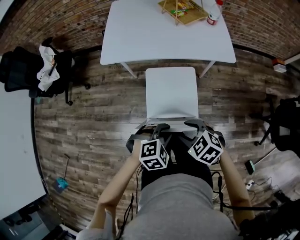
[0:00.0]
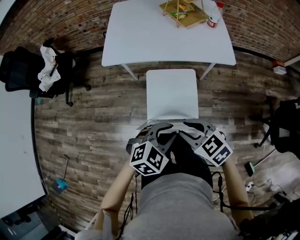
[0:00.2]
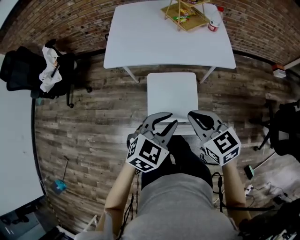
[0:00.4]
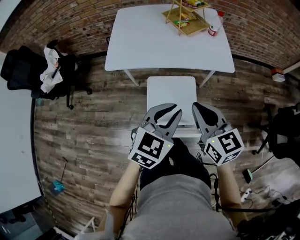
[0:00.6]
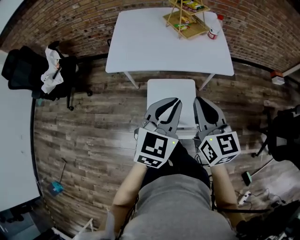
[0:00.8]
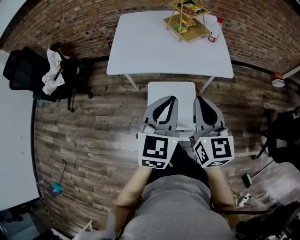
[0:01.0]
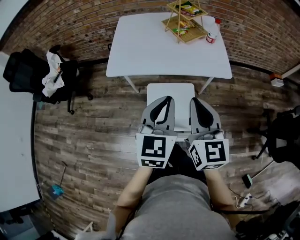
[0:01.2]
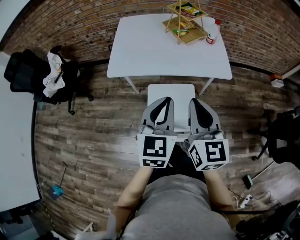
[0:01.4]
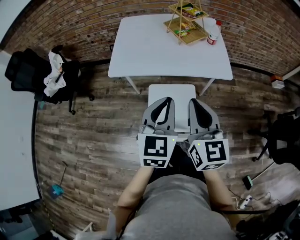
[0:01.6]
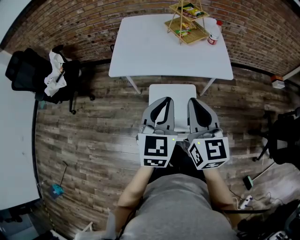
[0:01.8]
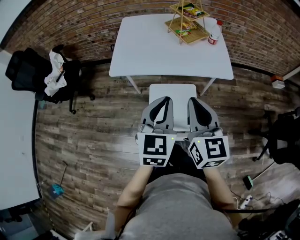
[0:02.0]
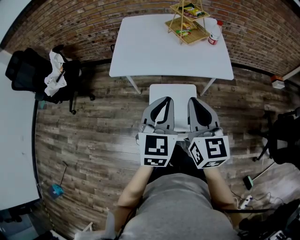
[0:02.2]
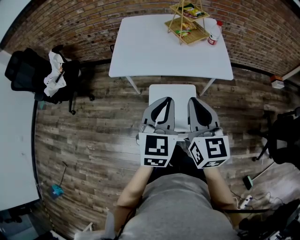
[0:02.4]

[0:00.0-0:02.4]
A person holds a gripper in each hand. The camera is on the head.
0:00.0 to 0:01.2: Both grippers move upward and forward, roughly 25 cm. The left gripper tilts its fingers some 40 degrees upward. Meanwhile the right gripper tilts its fingers about 50 degrees upward, and closes up.
0:01.2 to 0:02.4: There are only small adjustments of the grippers.

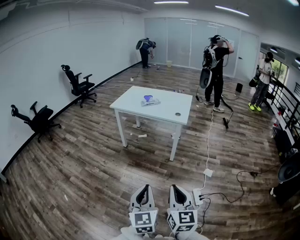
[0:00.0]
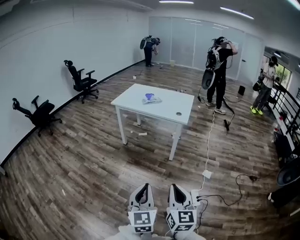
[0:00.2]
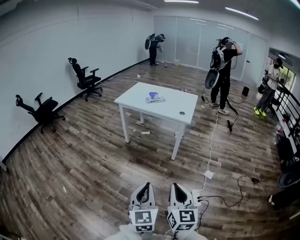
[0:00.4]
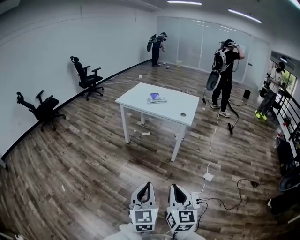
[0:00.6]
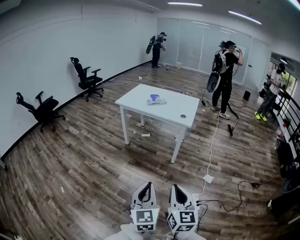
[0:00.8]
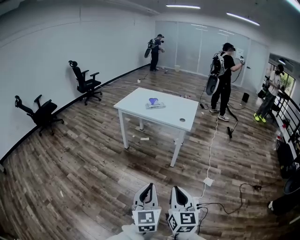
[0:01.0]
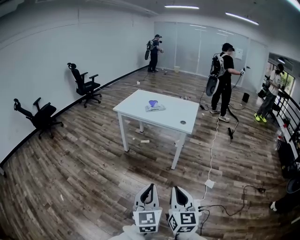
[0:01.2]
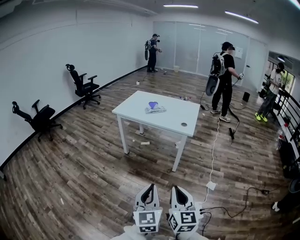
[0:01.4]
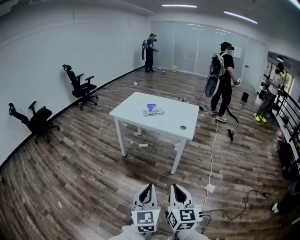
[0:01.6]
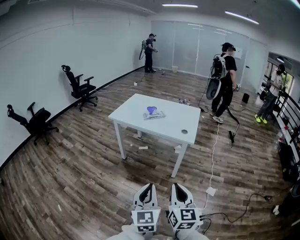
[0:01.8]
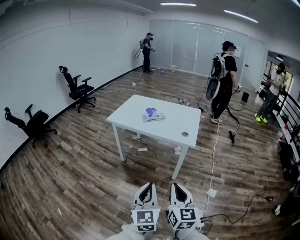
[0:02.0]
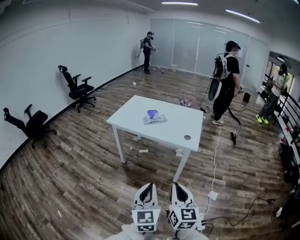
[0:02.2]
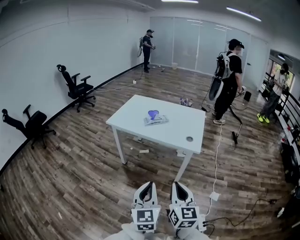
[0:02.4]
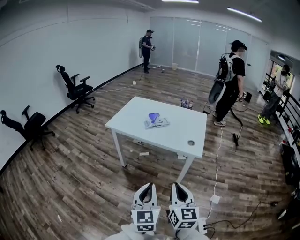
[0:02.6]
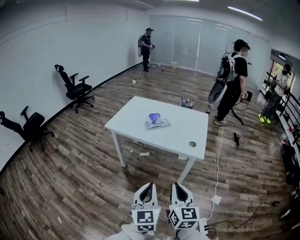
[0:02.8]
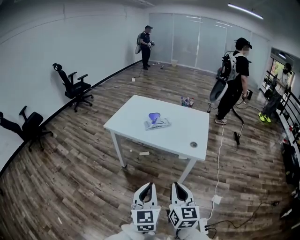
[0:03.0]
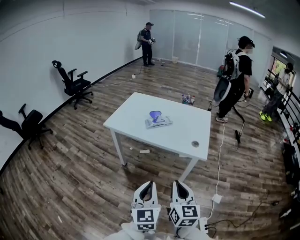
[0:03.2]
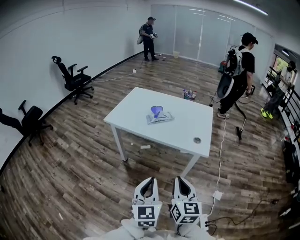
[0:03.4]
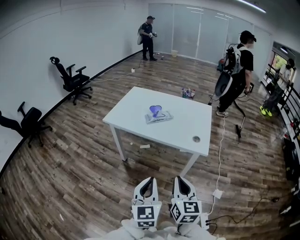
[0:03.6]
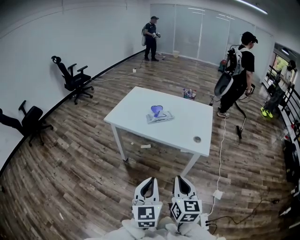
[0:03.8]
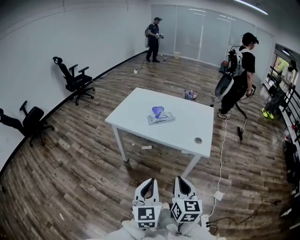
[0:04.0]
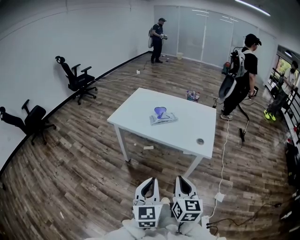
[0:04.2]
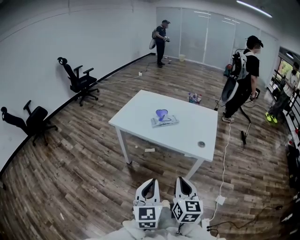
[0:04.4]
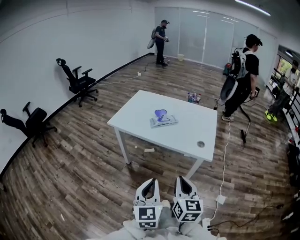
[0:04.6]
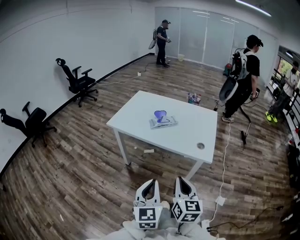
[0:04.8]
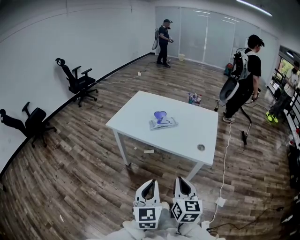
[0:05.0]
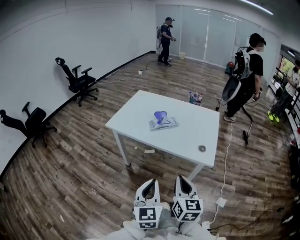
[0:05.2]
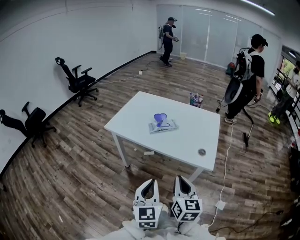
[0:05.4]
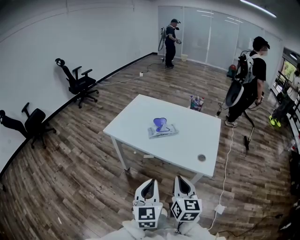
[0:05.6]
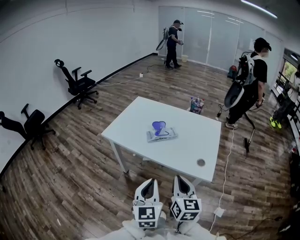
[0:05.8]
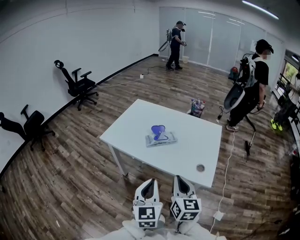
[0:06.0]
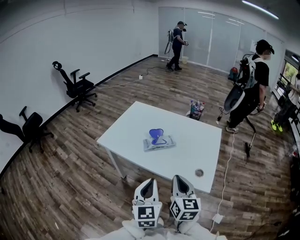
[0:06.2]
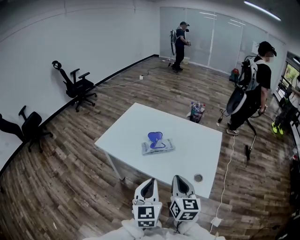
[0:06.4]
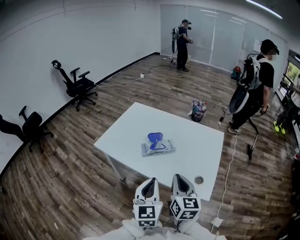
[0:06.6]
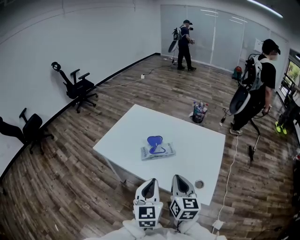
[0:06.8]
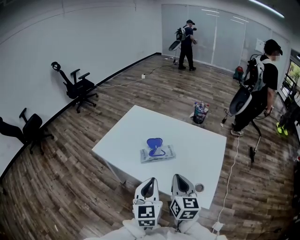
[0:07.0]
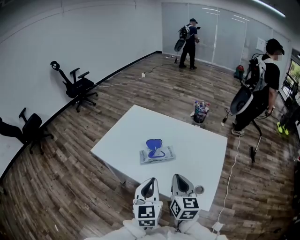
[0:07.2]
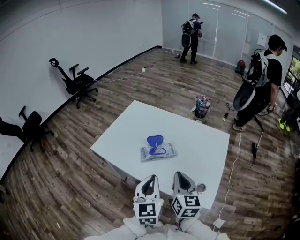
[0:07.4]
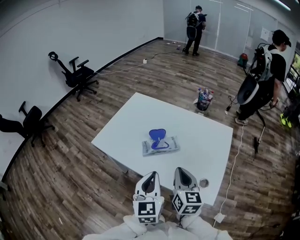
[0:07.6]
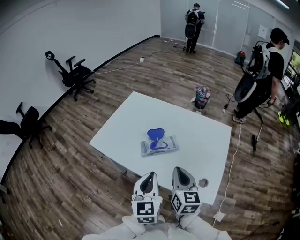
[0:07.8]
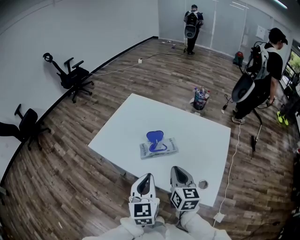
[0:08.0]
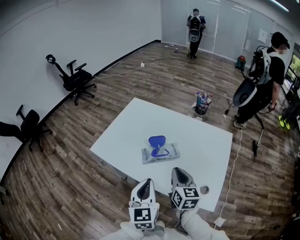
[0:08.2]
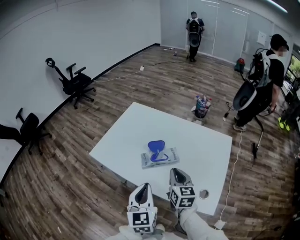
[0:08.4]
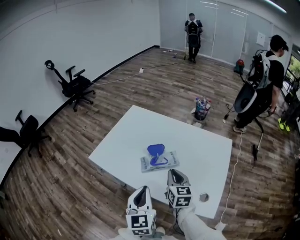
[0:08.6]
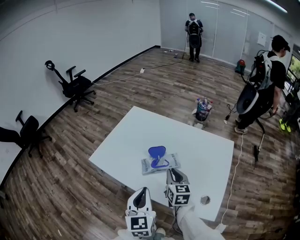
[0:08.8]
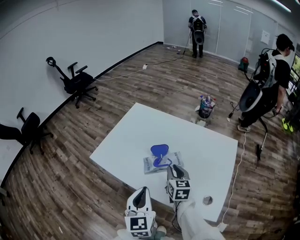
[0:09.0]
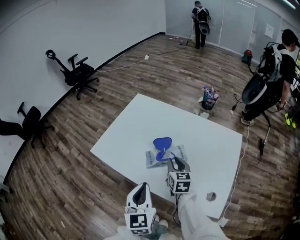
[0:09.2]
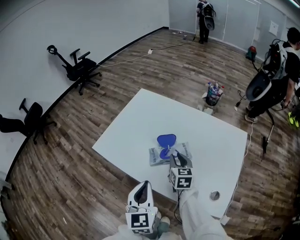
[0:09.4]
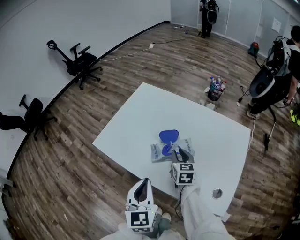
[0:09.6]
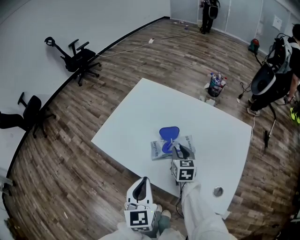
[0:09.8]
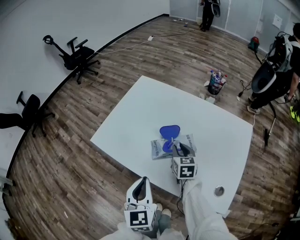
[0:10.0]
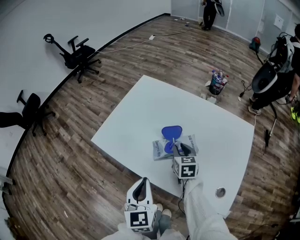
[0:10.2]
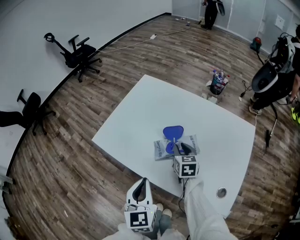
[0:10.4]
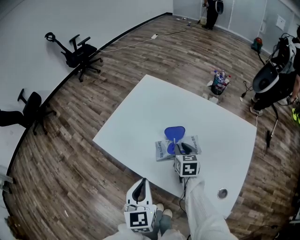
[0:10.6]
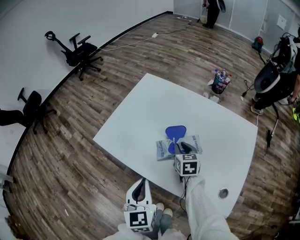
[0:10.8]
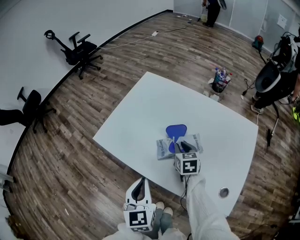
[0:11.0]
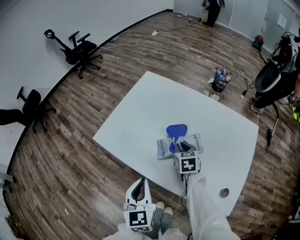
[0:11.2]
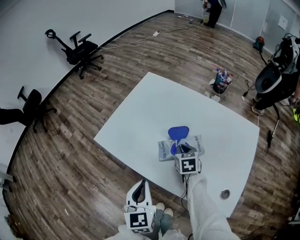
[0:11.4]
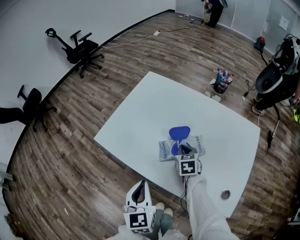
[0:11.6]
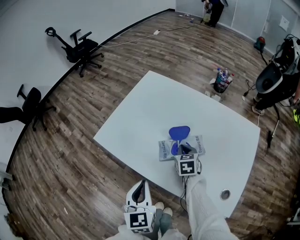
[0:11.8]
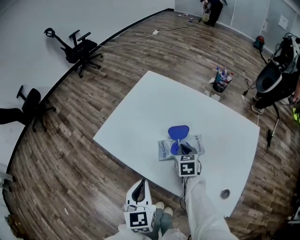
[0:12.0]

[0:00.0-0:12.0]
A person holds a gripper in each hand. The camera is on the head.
0:00.0 to 0:01.6: Both grippers move forward, approximately 15 cm.
0:01.6 to 0:03.0: The grippers both shift forward by approximately 25 cm.
0:03.0 to 0:04.4: The right gripper ends up roughly 5 cm from where it was.
0:04.4 to 0:06.0: Both grippers travel together forward, roughly 20 cm.
0:06.0 to 0:07.6: The grippers both shift forward by some 15 cm.
0:07.6 to 0:09.0: The left gripper heads to the left, covering roughly 5 cm. Meanwhile the right gripper is displaced forward and downward by roughly 15 cm.
0:09.0 to 0:10.4: The right gripper is displaced downward and forward by approximately 10 cm. The left gripper changes place by about 5 cm.
0:10.4 to 0:12.0: The right gripper closes.

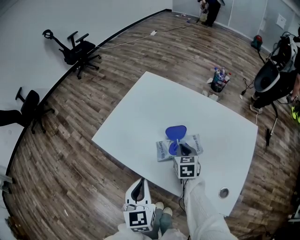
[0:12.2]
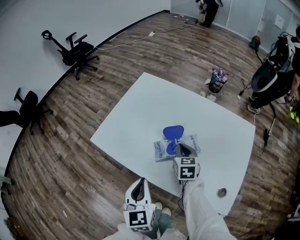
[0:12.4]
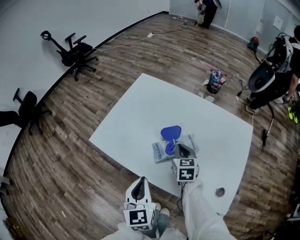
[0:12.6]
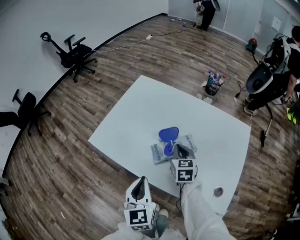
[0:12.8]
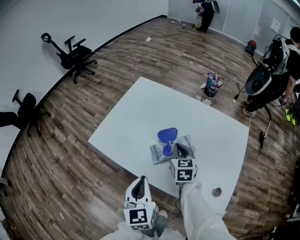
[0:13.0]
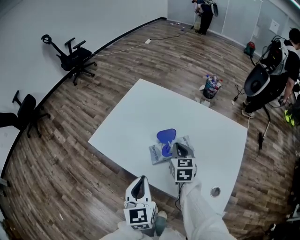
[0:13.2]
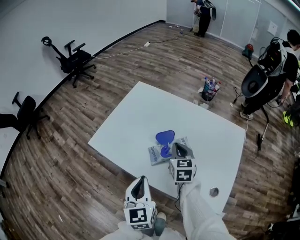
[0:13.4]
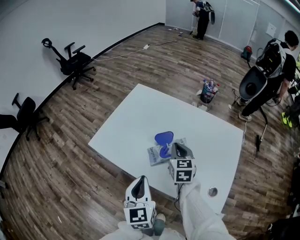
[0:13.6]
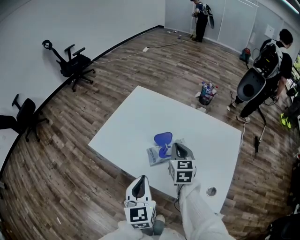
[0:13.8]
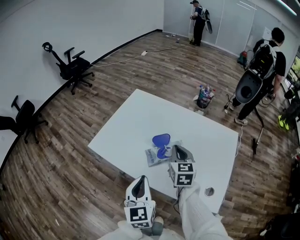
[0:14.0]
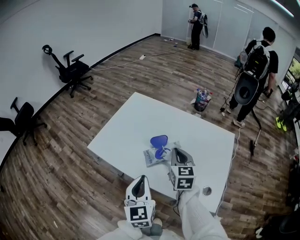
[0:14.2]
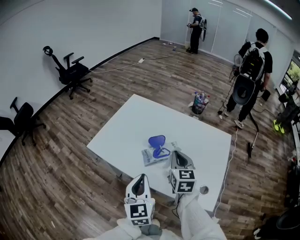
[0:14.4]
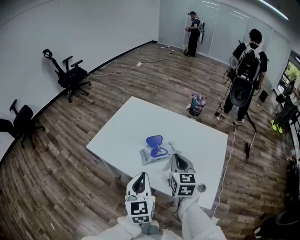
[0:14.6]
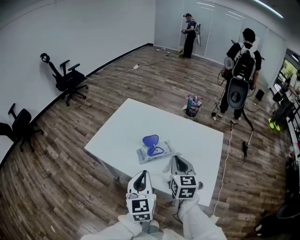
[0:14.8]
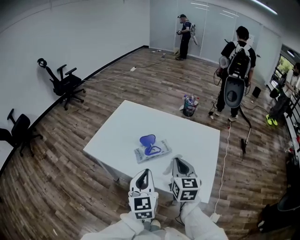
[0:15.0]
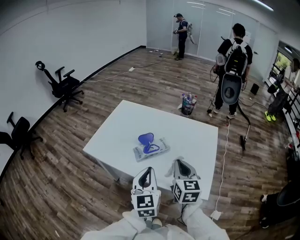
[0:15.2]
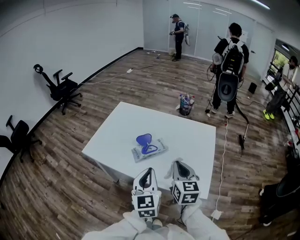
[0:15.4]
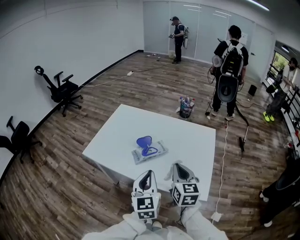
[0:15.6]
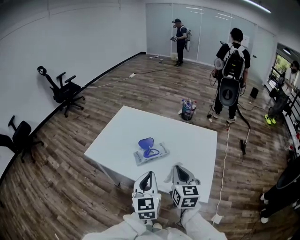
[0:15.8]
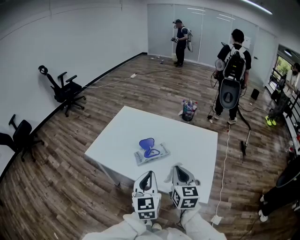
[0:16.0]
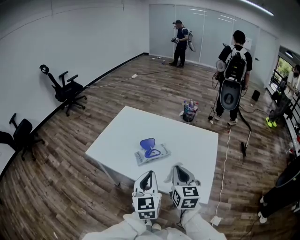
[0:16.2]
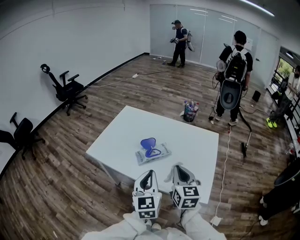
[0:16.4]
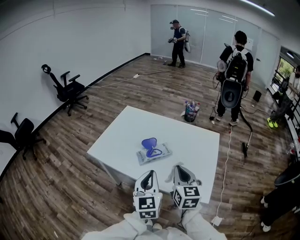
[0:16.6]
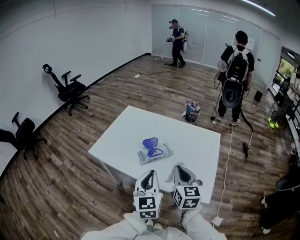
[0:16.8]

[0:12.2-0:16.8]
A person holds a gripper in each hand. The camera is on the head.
0:12.2 to 0:13.8: The right gripper is displaced upward by some 10 cm. Meanwhile the left gripper ends up approximately 5 cm from where it was.
0:13.8 to 0:15.2: The left gripper moves to the right and upward, some 10 cm, while the right gripper heads backward, to the right and upward, covering some 20 cm.
0:15.2 to 0:16.8: There are only small adjustments of the grippers.

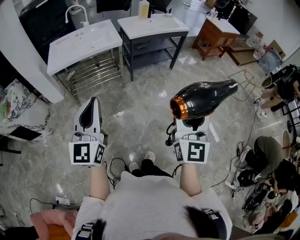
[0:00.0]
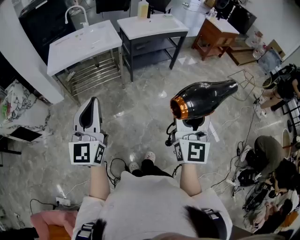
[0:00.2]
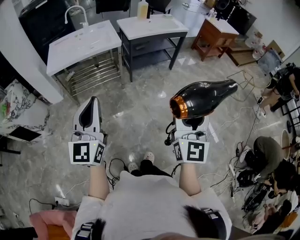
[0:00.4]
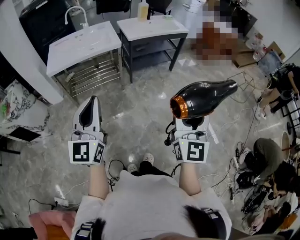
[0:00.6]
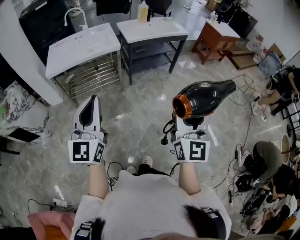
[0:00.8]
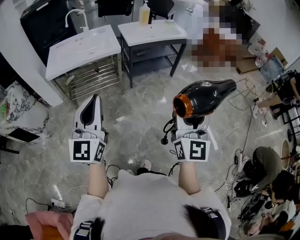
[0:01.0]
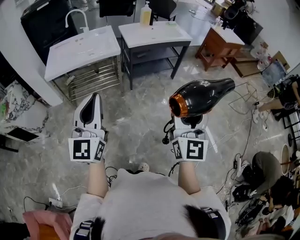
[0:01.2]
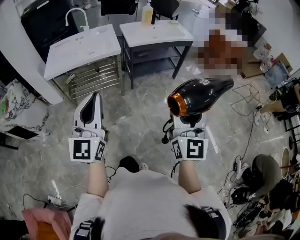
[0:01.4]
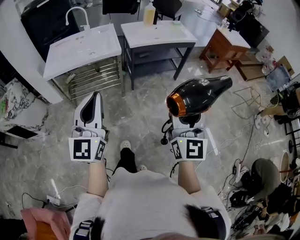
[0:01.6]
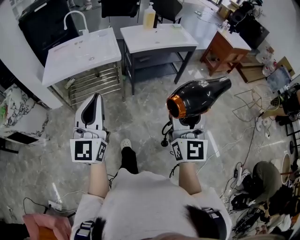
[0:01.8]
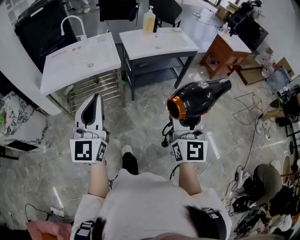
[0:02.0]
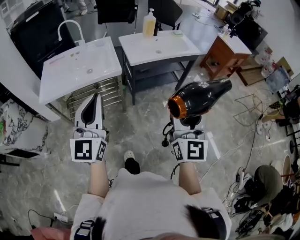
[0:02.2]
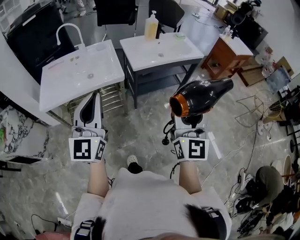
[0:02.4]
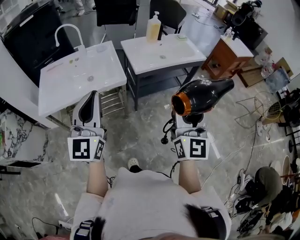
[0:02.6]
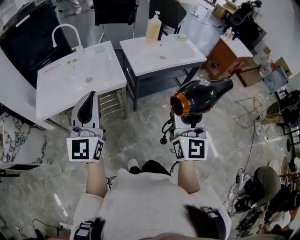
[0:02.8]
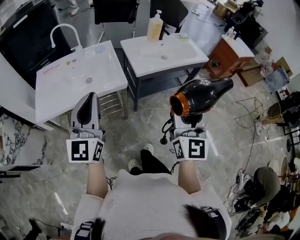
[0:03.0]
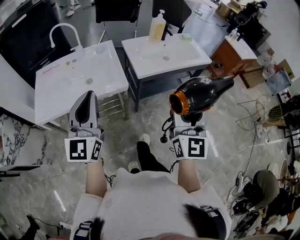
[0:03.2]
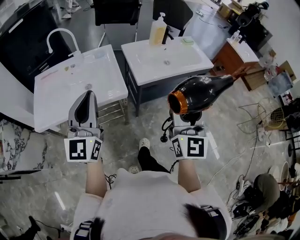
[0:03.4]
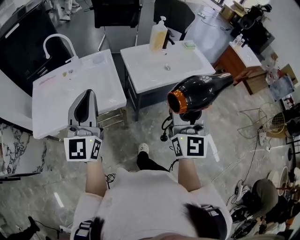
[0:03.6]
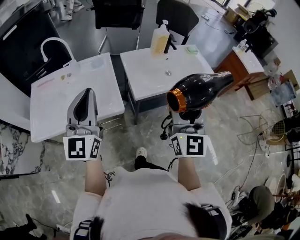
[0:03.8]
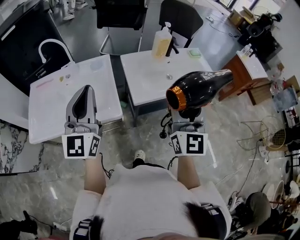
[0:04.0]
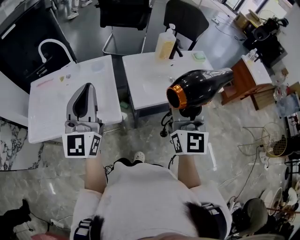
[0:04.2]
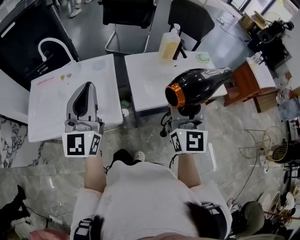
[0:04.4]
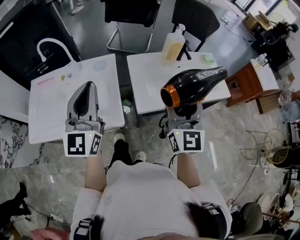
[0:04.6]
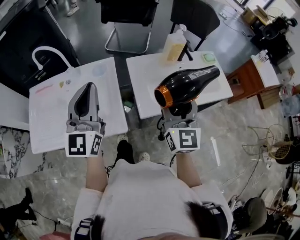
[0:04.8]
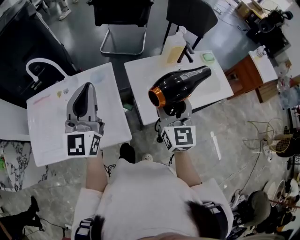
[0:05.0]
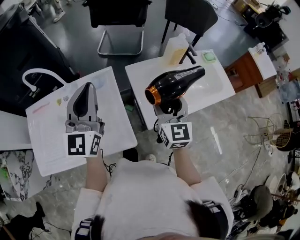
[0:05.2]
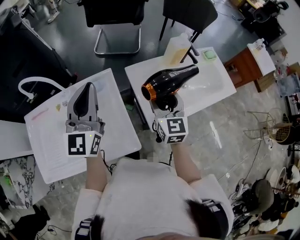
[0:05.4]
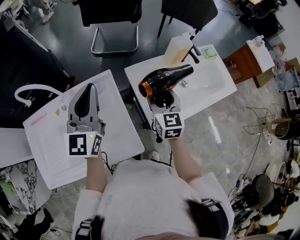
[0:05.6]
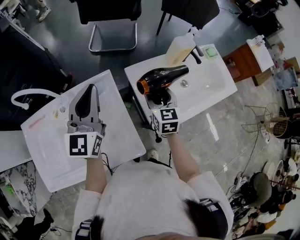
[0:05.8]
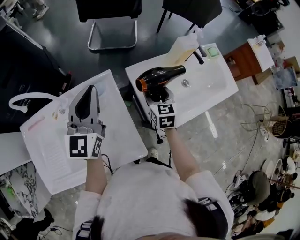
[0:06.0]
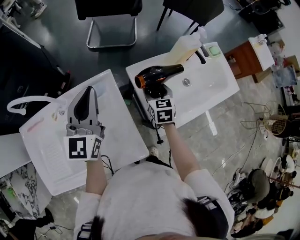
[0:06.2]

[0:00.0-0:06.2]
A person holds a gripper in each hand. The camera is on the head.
0:00.0 to 0:01.6: The right gripper shifts some 15 cm forward, while the left gripper moves forward and to the right, about 15 cm.
0:01.6 to 0:03.2: The right gripper is displaced forward by approximately 35 cm. The left gripper shifts roughly 40 cm forward and to the left.
0:03.2 to 0:04.6: Both grippers travel together forward, some 30 cm.
0:04.6 to 0:06.2: The right gripper heads downward, forward and to the left, covering some 40 cm, and tilts its fingers roughly 50 degrees downward. Meanwhile the left gripper is displaced forward by some 25 cm.
